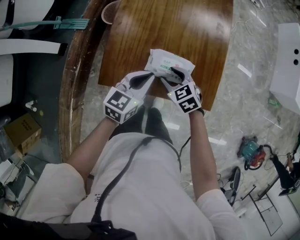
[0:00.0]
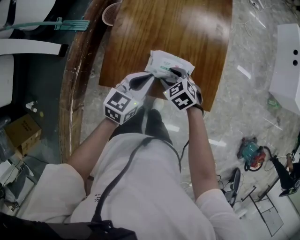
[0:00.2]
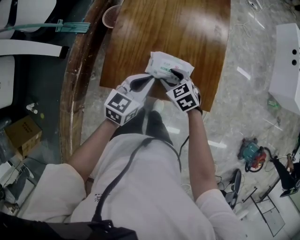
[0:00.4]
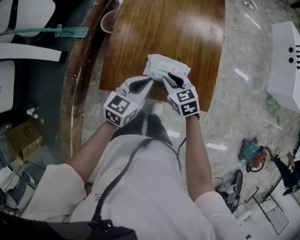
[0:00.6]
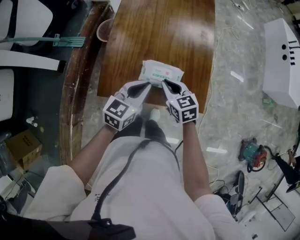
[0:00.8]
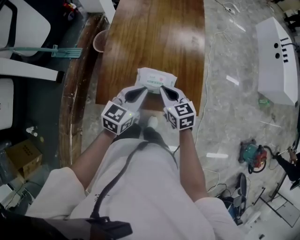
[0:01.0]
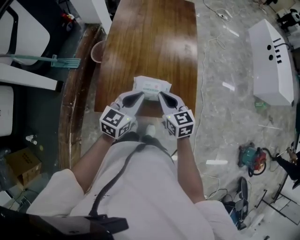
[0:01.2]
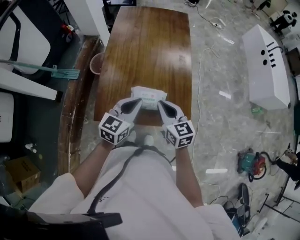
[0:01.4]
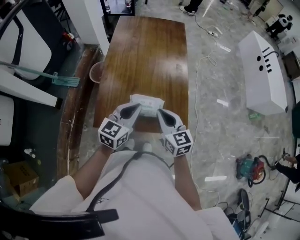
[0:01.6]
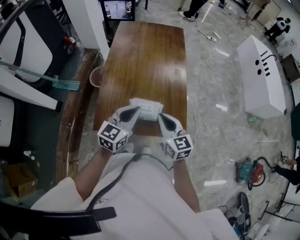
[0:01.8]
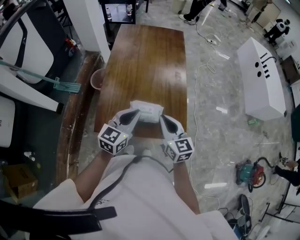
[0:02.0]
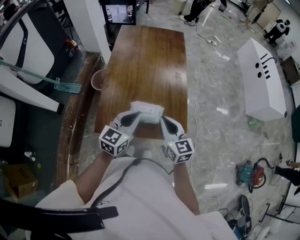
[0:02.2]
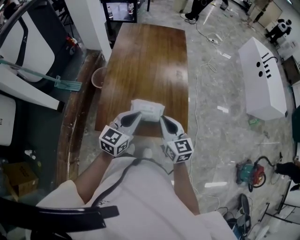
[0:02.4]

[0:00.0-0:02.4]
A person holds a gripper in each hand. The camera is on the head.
0.0 to 1.2 s: The left gripper is displaced upward by about 10 cm; the right gripper moves upward, approximately 15 cm, changes its angle by approximately 30 degrees, and closes up.
1.2 to 2.4 s: The two grippers go roughly 5 cm upward.

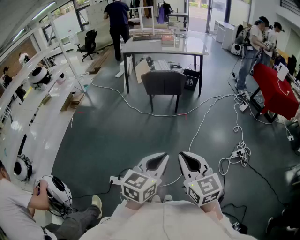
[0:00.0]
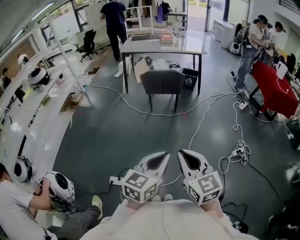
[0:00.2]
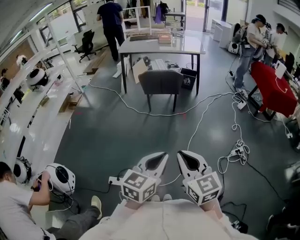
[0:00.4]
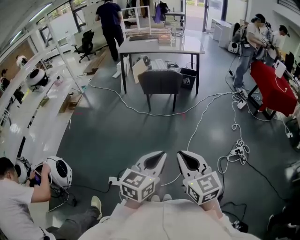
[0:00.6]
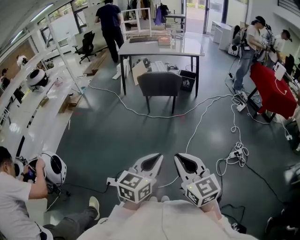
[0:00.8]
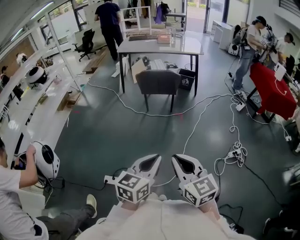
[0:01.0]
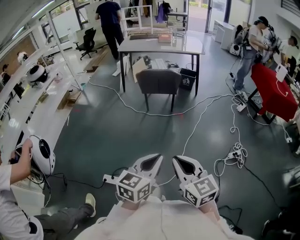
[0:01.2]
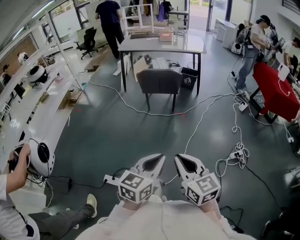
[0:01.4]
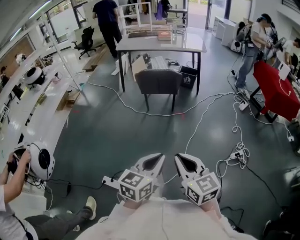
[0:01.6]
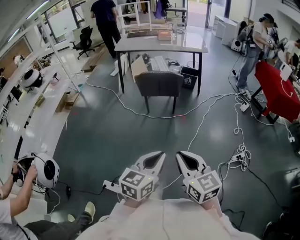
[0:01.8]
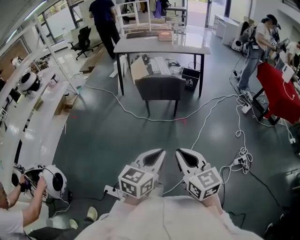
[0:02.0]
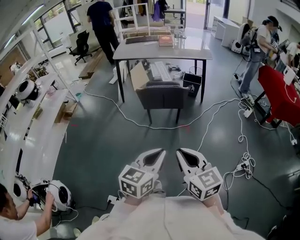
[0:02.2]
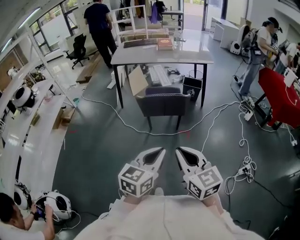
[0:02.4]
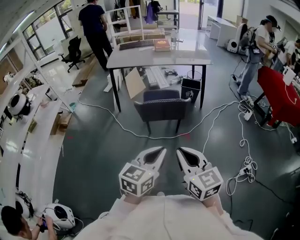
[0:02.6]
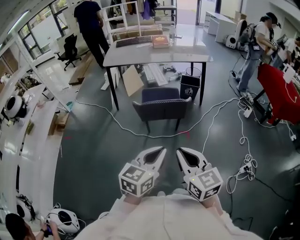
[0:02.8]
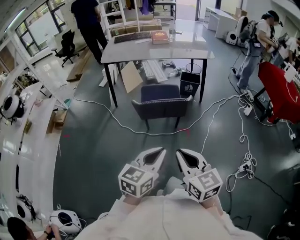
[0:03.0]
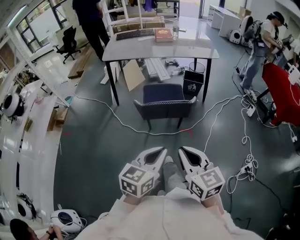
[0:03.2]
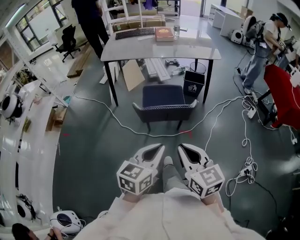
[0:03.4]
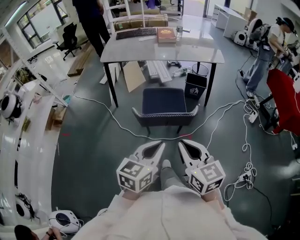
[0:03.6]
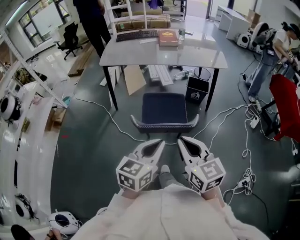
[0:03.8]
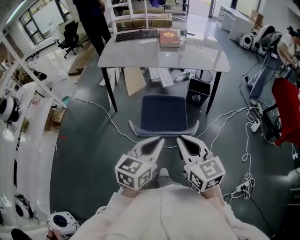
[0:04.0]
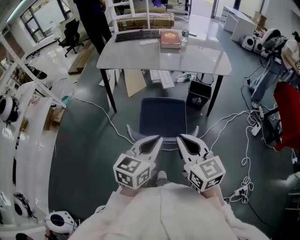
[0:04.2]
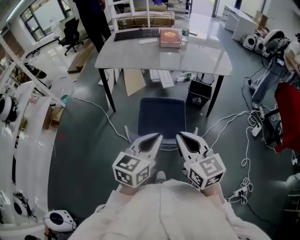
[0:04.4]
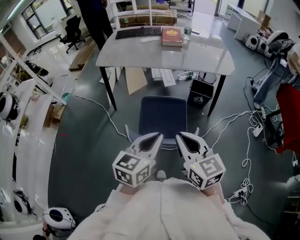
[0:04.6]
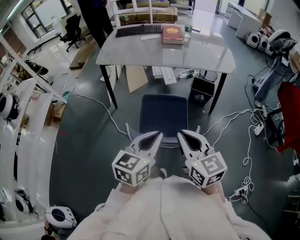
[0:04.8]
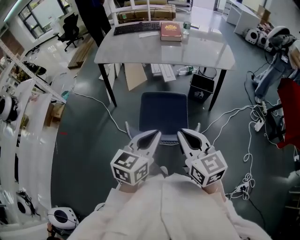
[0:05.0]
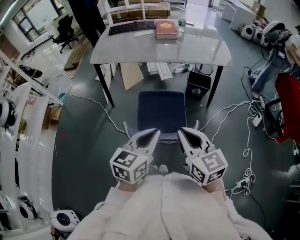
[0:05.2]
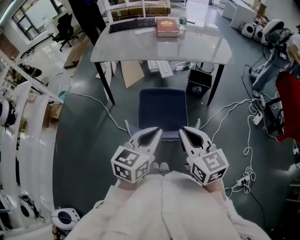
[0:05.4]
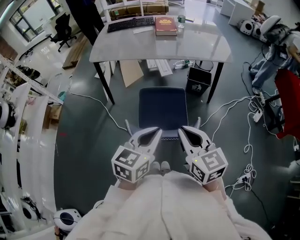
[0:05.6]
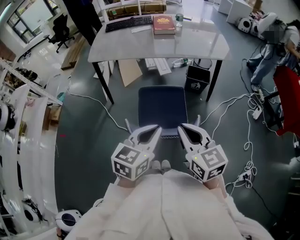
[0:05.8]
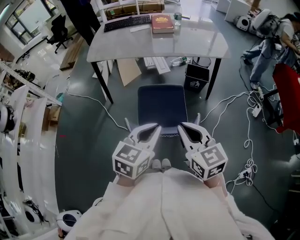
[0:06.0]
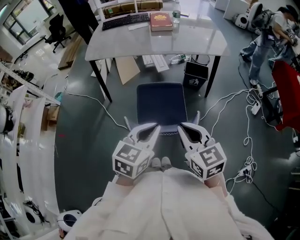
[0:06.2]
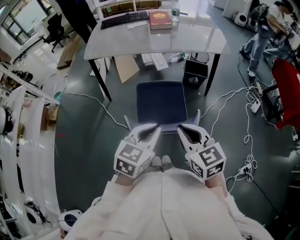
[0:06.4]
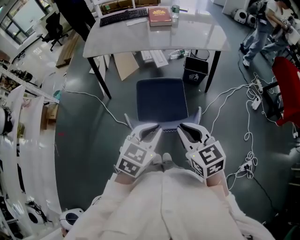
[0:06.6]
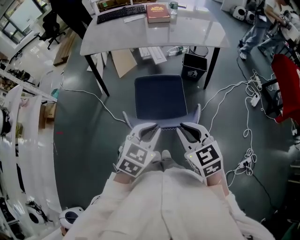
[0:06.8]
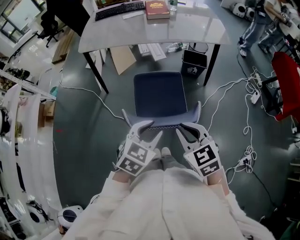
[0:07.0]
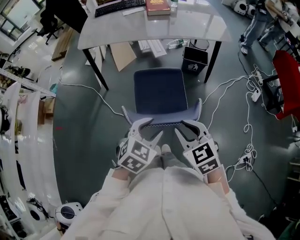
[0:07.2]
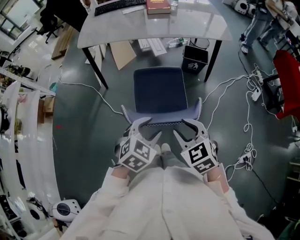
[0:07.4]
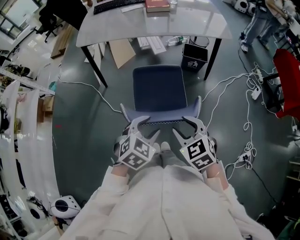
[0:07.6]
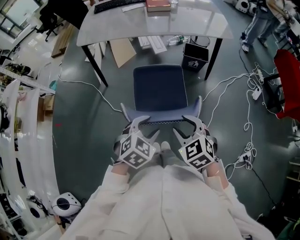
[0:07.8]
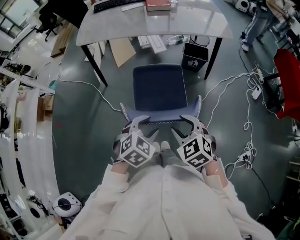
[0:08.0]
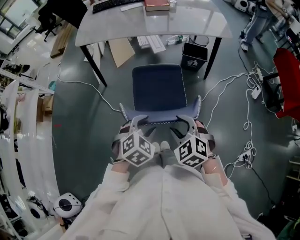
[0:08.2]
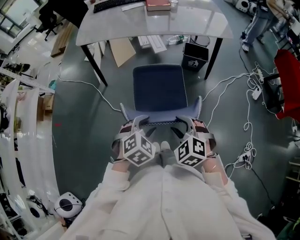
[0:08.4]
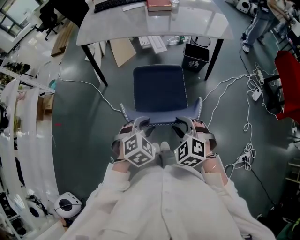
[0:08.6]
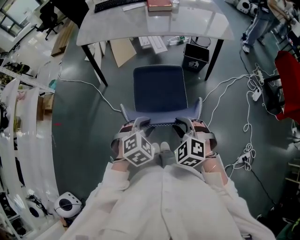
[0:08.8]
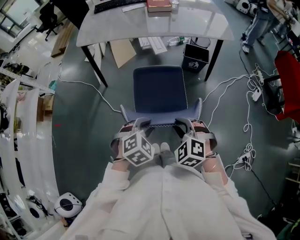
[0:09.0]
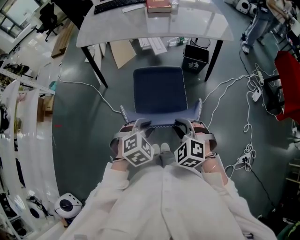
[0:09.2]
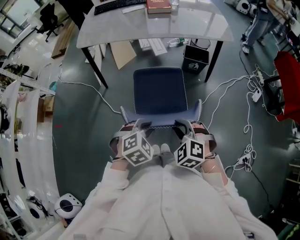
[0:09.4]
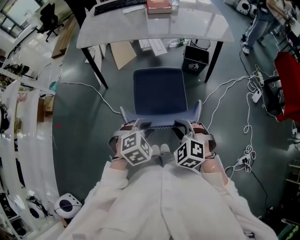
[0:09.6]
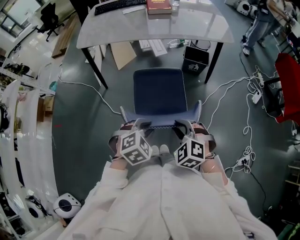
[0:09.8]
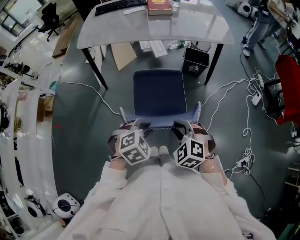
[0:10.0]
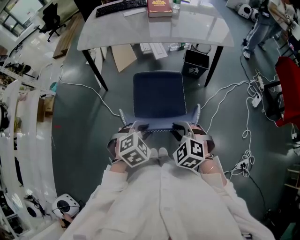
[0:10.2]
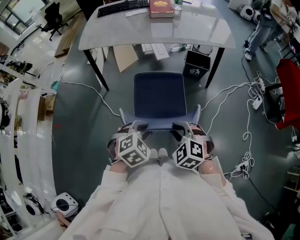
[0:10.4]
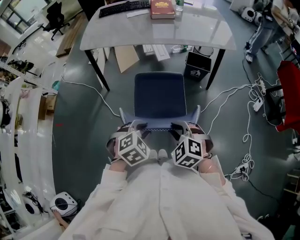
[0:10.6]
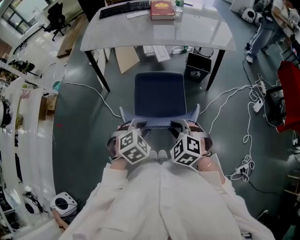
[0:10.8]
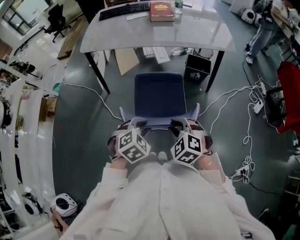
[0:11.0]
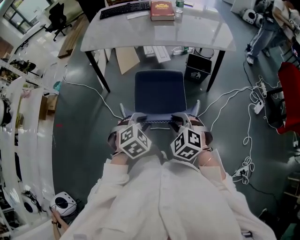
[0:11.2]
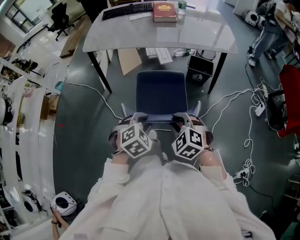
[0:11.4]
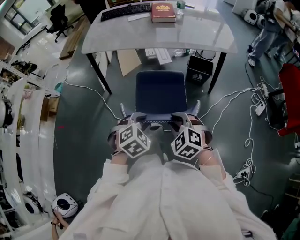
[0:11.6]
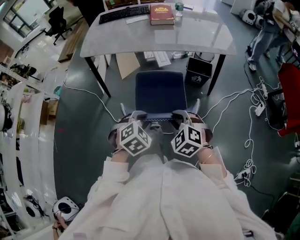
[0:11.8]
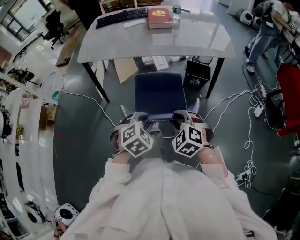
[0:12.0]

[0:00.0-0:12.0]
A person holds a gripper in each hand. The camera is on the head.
0.0 to 1.6 s: The two grippers go about 5 cm forward.
1.6 to 3.0 s: The pair of grippers is taken forward, about 40 cm.
3.0 to 4.4 s: Both grippers travel together forward, approximately 35 cm.
4.4 to 6.0 s: The grippers move only a little.
6.0 to 7.6 s: The two grippers go roughly 10 cm downward. The right gripper rotates roughly 30 degrees, and opens its fingers, while the left gripper swivels roughly 40 degrees, and opens its fingers.
7.6 to 9.0 s: The right gripper turns by some 30 degrees.
9.0 to 10.4 s: The grippers stay close to where they were, moving slightly.
10.4 to 12.0 s: Both grippers move forward, about 10 cm.

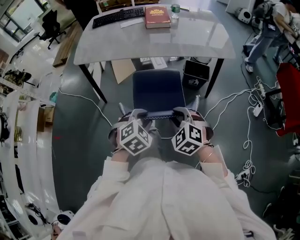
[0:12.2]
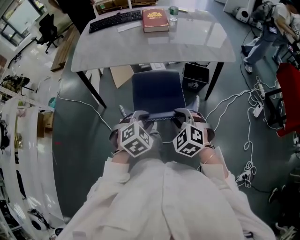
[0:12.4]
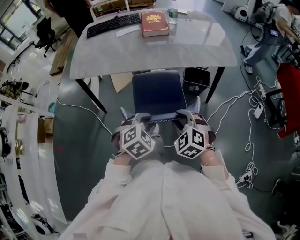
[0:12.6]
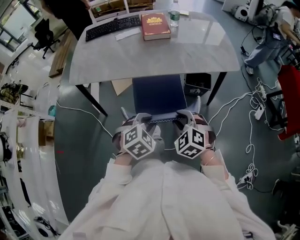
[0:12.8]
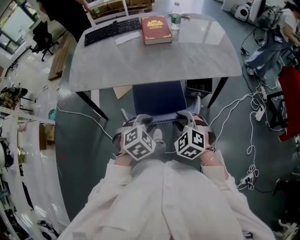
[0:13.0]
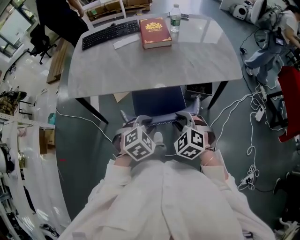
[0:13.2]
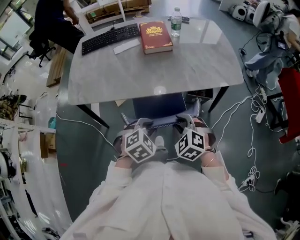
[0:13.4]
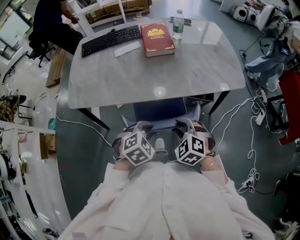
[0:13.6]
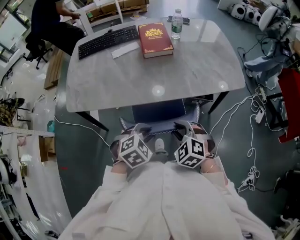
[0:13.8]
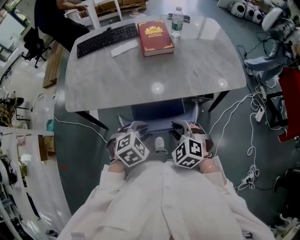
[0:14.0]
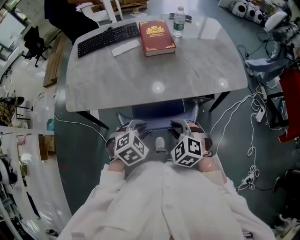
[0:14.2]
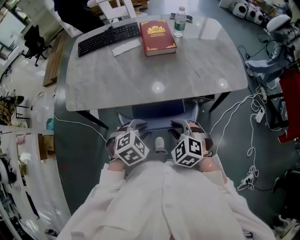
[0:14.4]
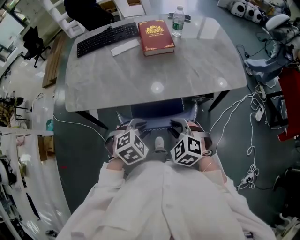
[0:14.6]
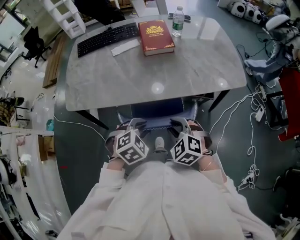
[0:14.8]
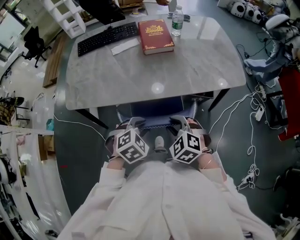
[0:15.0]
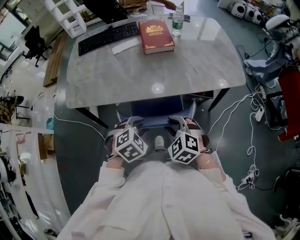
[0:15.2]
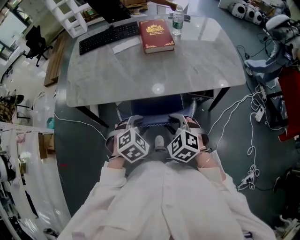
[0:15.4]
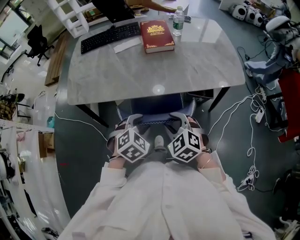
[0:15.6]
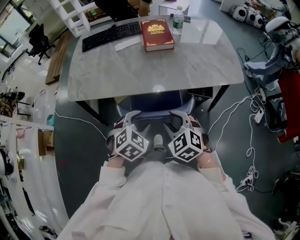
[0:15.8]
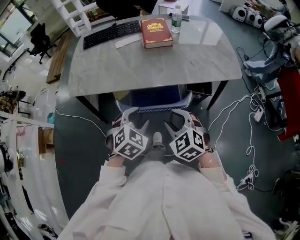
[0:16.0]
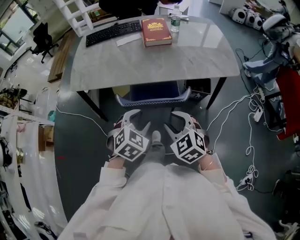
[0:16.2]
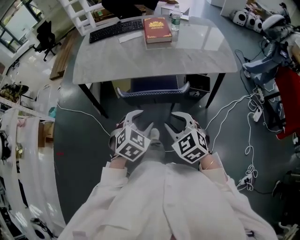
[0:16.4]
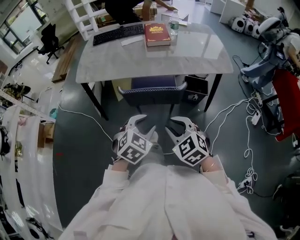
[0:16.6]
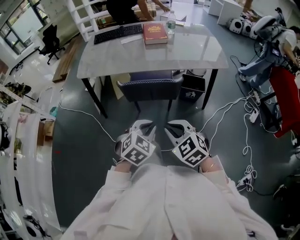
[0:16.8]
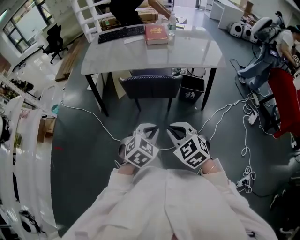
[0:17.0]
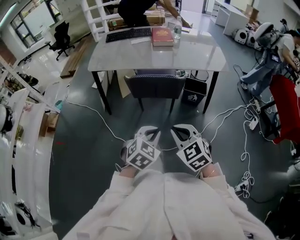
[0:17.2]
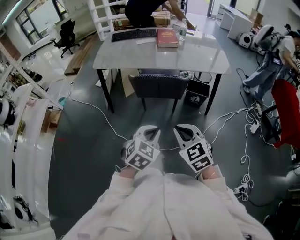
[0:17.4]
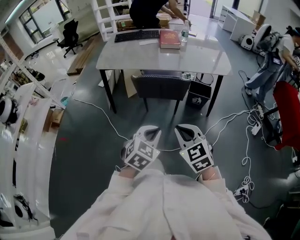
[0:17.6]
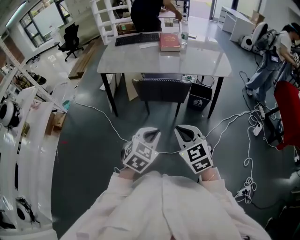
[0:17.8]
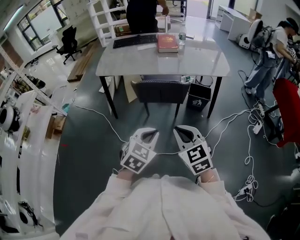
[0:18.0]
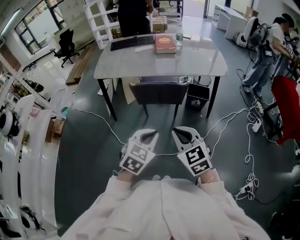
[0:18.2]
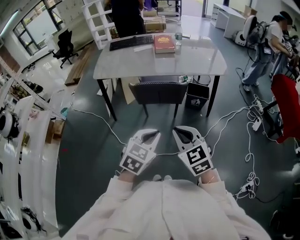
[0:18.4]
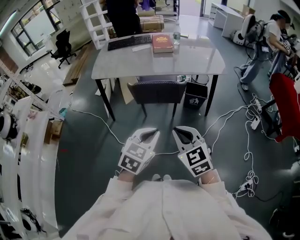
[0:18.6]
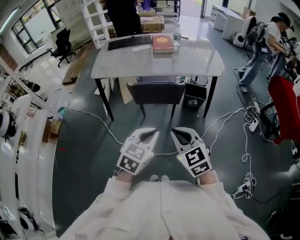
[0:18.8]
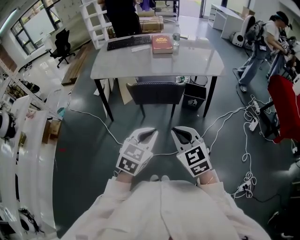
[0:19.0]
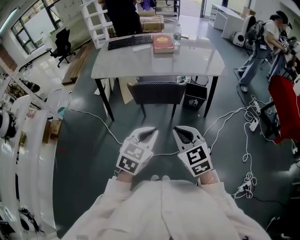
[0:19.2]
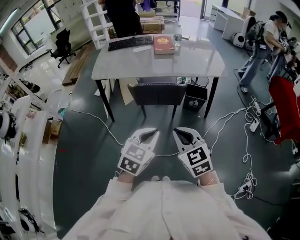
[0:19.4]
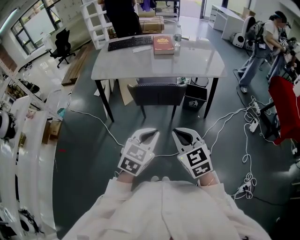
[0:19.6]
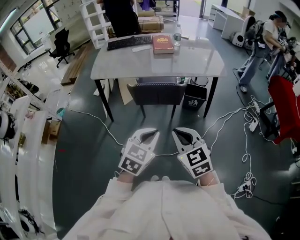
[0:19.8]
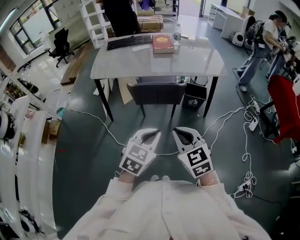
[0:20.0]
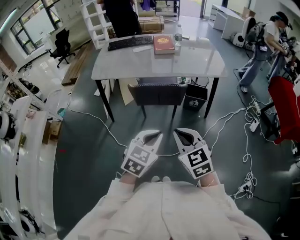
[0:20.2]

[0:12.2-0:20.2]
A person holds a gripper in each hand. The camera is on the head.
12.2 to 13.8 s: The grippers both shift forward by roughly 25 cm.
13.8 to 15.4 s: The grippers stay close to where they were, moving slightly.
15.4 to 17.0 s: The two grippers go some 35 cm backward. The left gripper swivels roughly 20 degrees, and closes its fingers. The right gripper closes up.
17.0 to 18.6 s: The grippers both shift upward by about 10 cm.
18.6 to 20.2 s: The grippers make only small movements.

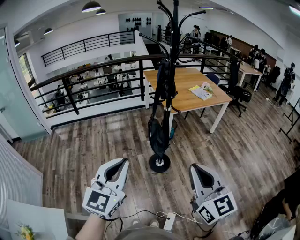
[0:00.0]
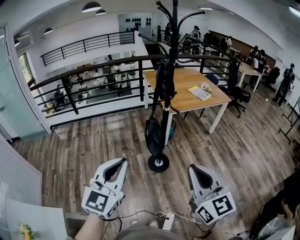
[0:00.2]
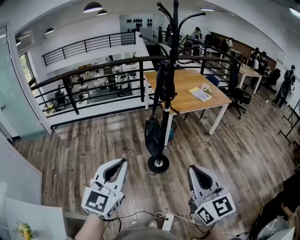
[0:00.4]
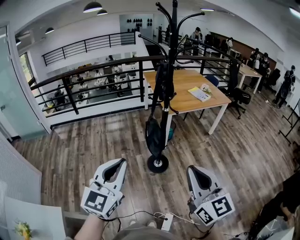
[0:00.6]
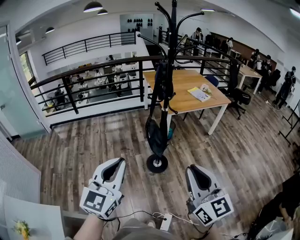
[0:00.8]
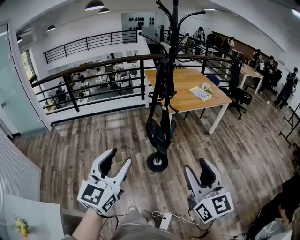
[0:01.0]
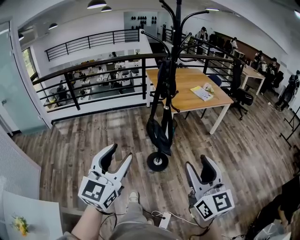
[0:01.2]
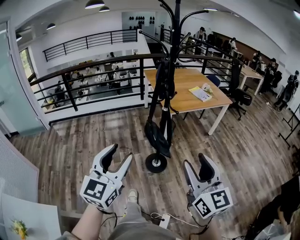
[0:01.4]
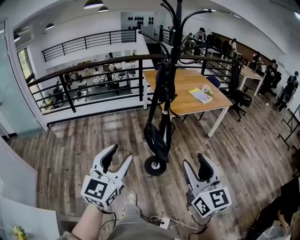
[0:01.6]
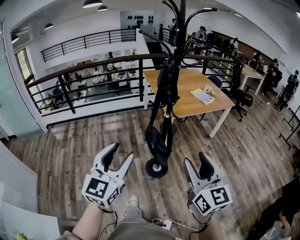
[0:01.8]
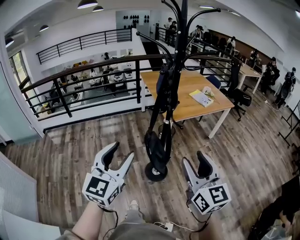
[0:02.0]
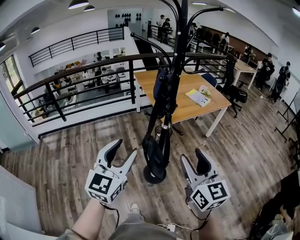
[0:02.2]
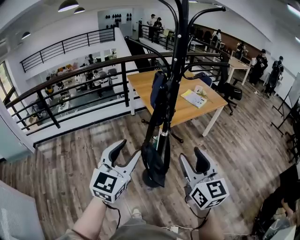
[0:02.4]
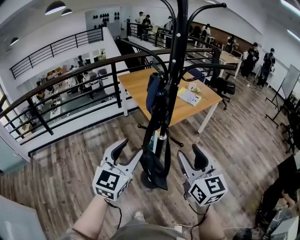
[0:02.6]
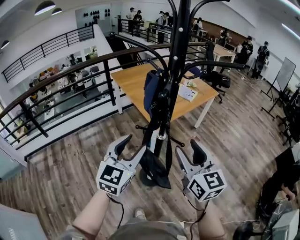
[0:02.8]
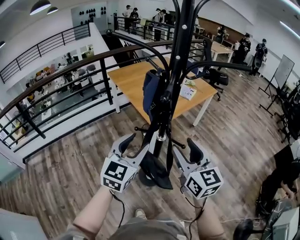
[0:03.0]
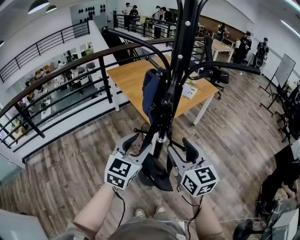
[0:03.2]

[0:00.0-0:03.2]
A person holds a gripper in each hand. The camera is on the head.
0.0 to 1.6 s: The grippers both shift forward by roughly 10 cm. The left gripper opens its fingers. Meanwhile the right gripper opens its fingers.
1.6 to 3.2 s: Both grippers move forward, some 35 cm. The left gripper swivels roughly 30 degrees.
